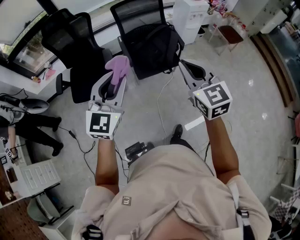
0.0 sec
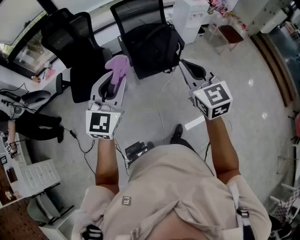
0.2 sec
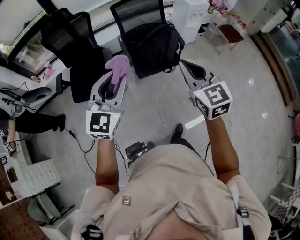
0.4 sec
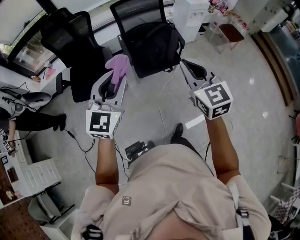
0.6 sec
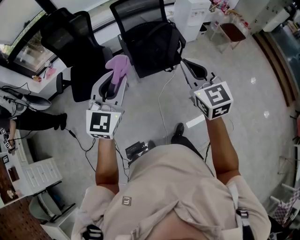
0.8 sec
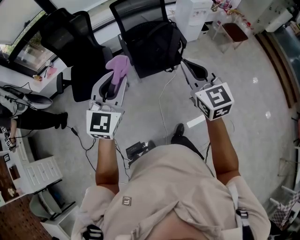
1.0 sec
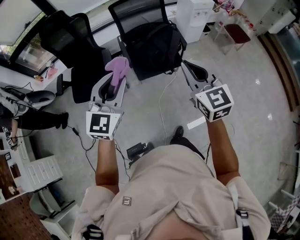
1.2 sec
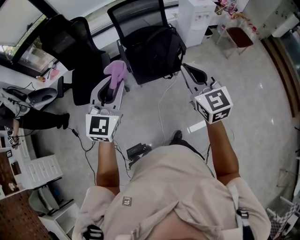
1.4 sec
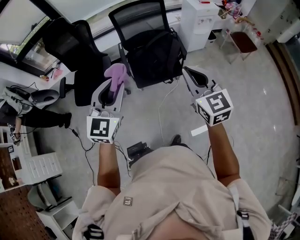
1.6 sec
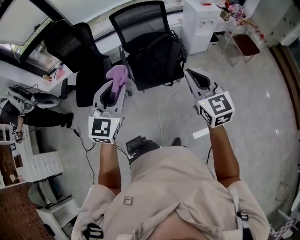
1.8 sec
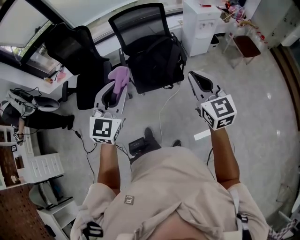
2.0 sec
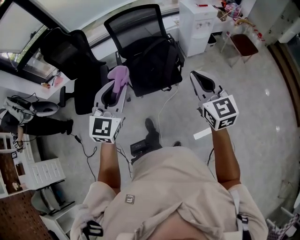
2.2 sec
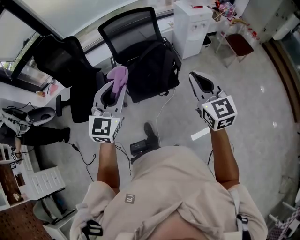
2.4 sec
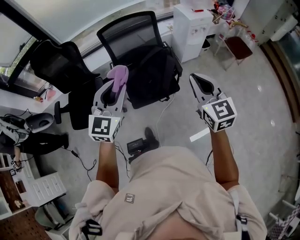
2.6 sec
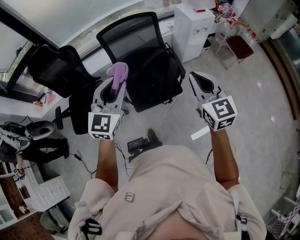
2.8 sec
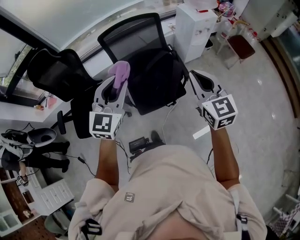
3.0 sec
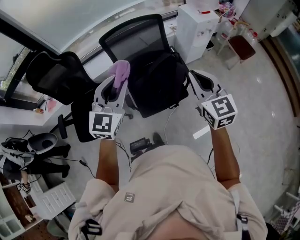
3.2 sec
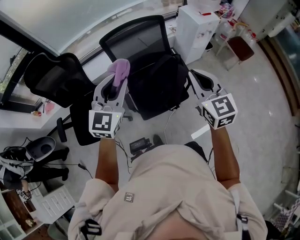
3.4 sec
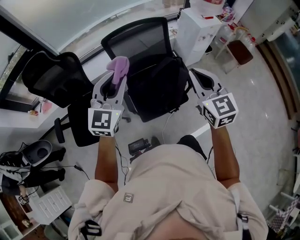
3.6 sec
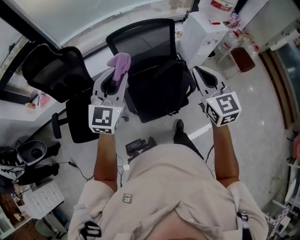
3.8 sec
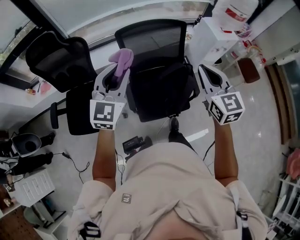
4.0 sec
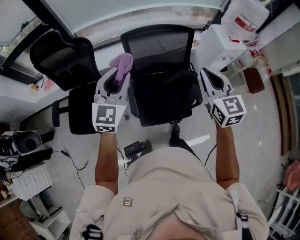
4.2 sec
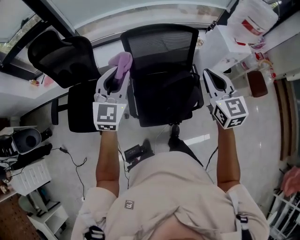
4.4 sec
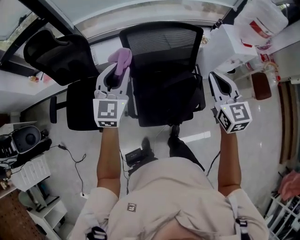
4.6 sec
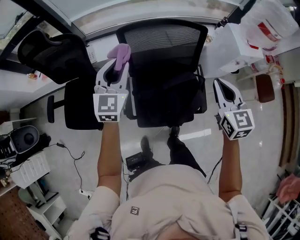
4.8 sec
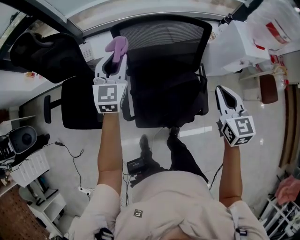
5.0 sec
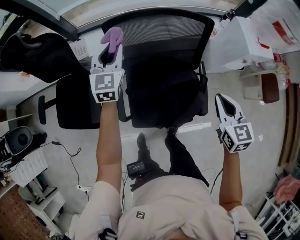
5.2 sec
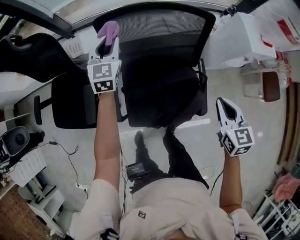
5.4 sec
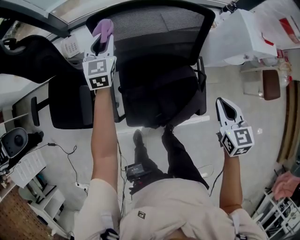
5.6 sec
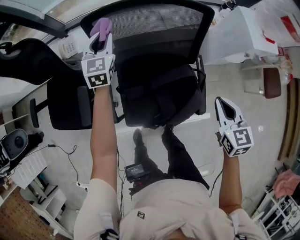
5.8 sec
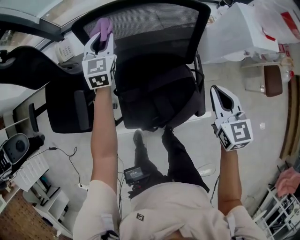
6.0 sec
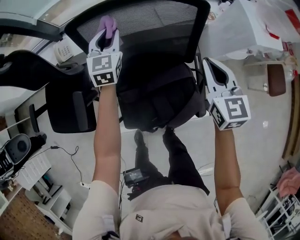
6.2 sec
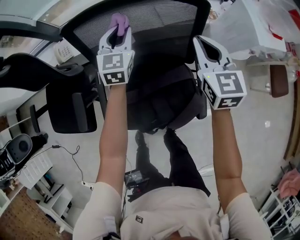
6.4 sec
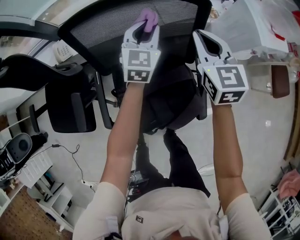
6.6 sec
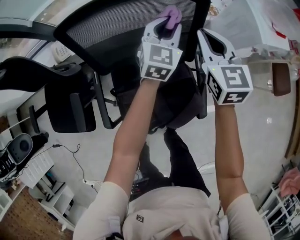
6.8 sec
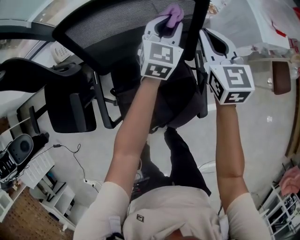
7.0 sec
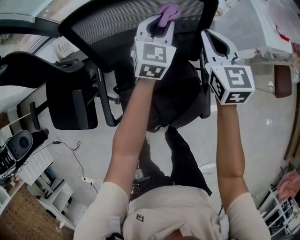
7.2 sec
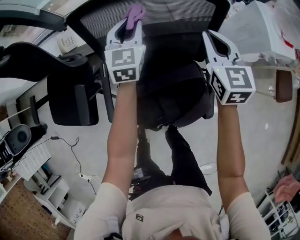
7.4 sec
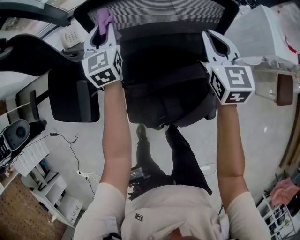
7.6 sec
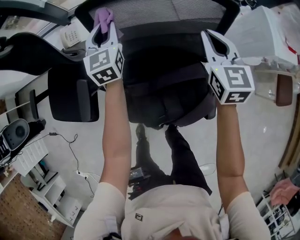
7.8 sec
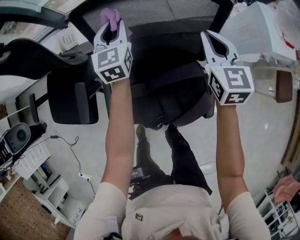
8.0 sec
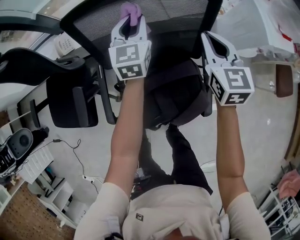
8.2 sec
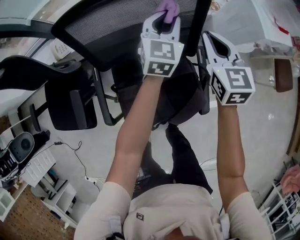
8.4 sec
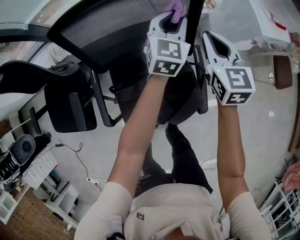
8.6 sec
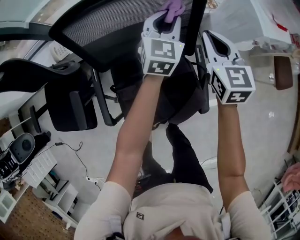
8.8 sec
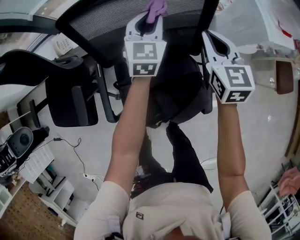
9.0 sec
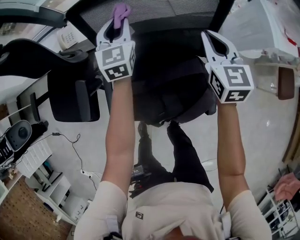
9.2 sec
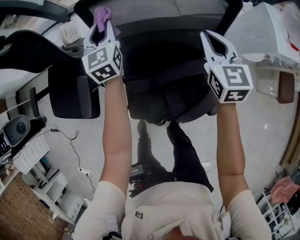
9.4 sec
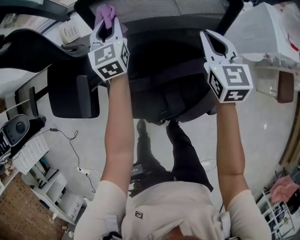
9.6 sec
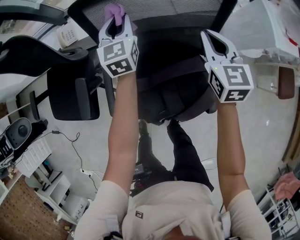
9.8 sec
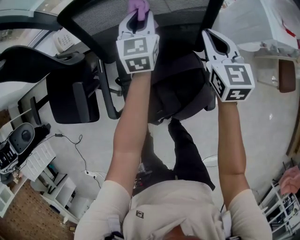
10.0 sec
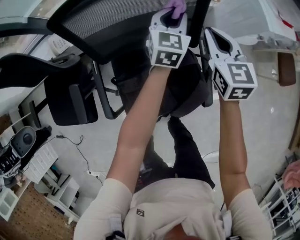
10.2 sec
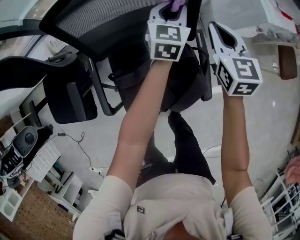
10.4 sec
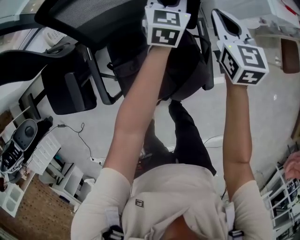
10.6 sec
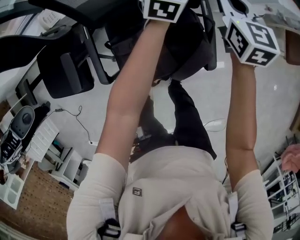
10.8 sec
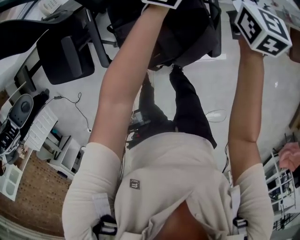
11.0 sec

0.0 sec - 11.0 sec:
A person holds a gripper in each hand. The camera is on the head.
0.0 sec - 1.6 sec: The two grippers go roughly 15 cm to the right and forward.
1.6 sec - 3.2 sec: Both grippers move forward, some 30 cm.
3.2 sec - 4.8 sec: The left gripper heads forward and downward, covering some 30 cm, and swivels some 20 degrees. The right gripper travels forward by approximately 30 cm.
4.8 sec - 6.2 sec: The left gripper goes roughly 30 cm downward, forward and to the right. Meanwhile the right gripper heads downward and forward, covering about 25 cm.
6.2 sec - 7.8 sec: The left gripper travels to the right and back again, some 25 cm each way. The right gripper shifts roughly 10 cm forward and to the left.
7.8 sec - 9.4 sec: The left gripper moves roughly 35 cm to the right and comes back; the right gripper travels to the right and back again, some 10 cm each way.
9.4 sec - 11.0 sec: The right gripper shifts roughly 10 cm to the right; the left gripper moves to the right, about 30 cm, and rotates some 30 degrees.

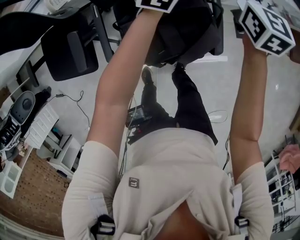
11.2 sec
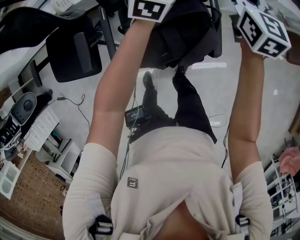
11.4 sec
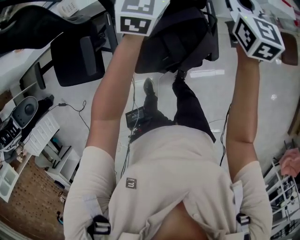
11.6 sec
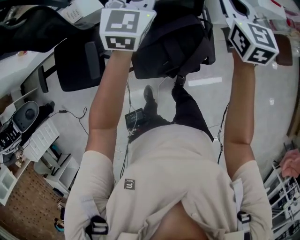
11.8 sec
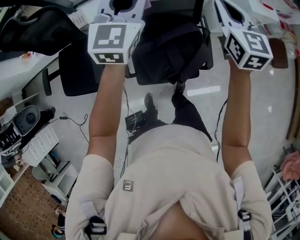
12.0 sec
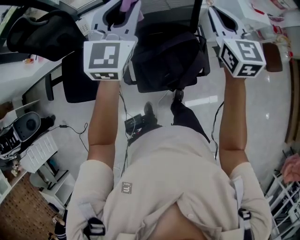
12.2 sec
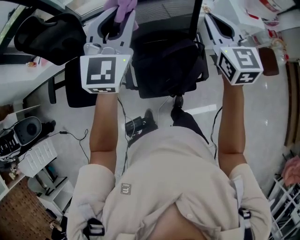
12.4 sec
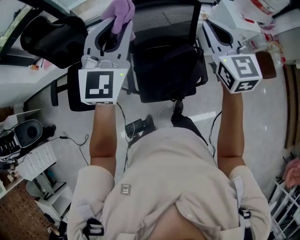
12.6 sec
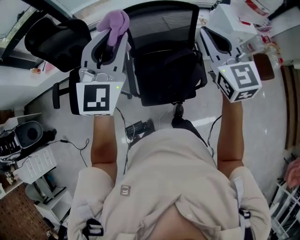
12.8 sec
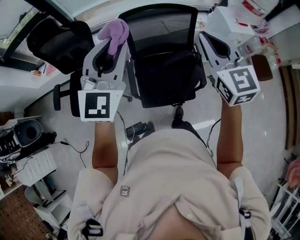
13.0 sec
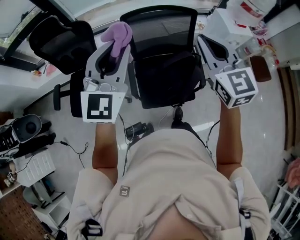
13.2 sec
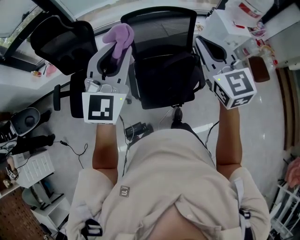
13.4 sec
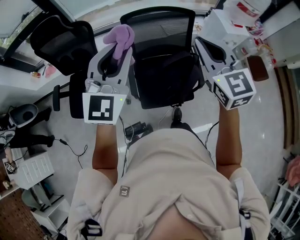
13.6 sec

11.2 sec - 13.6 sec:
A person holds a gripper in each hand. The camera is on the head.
11.2 sec - 12.4 sec: The right gripper moves upward and backward, about 30 cm. The left gripper moves upward, backward and to the left, roughly 50 cm, and swivels approximately 30 degrees.
12.4 sec - 13.6 sec: The left gripper moves backward and to the left, roughly 20 cm. Meanwhile the right gripper goes roughly 20 cm backward, to the left and upward.

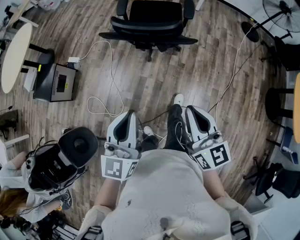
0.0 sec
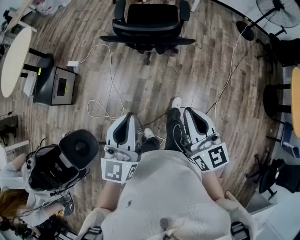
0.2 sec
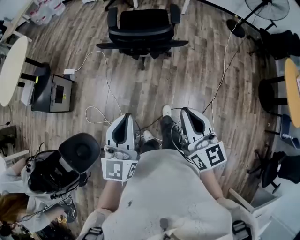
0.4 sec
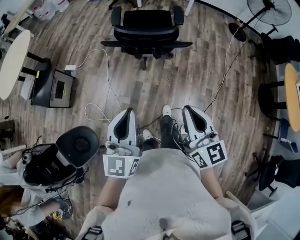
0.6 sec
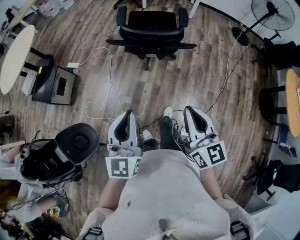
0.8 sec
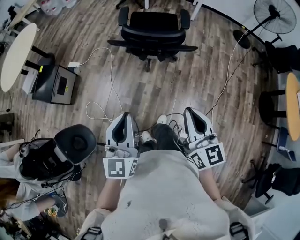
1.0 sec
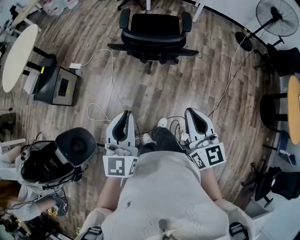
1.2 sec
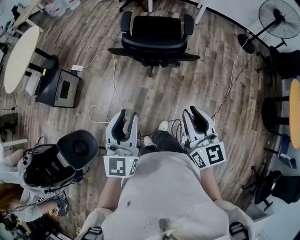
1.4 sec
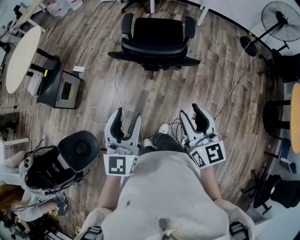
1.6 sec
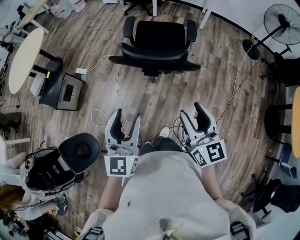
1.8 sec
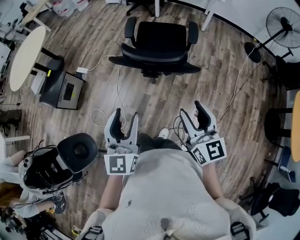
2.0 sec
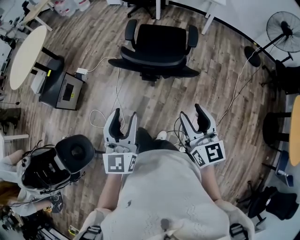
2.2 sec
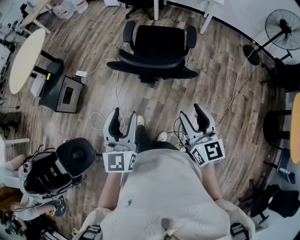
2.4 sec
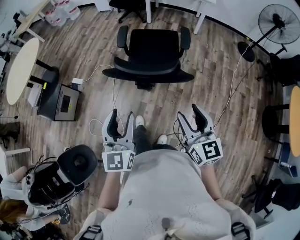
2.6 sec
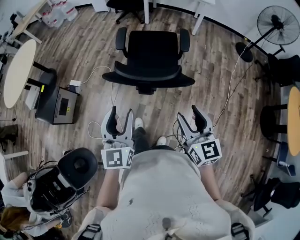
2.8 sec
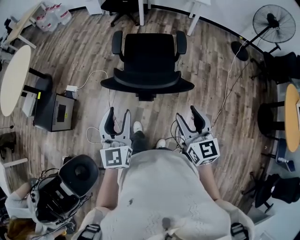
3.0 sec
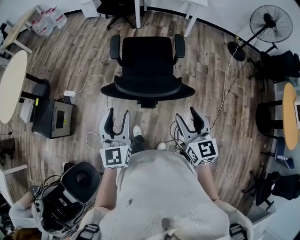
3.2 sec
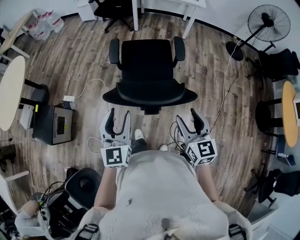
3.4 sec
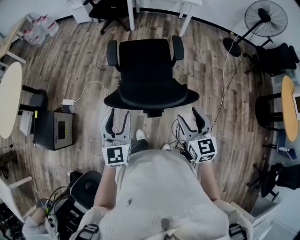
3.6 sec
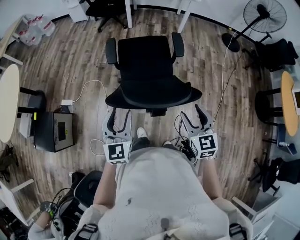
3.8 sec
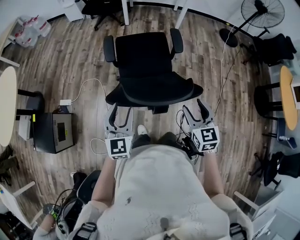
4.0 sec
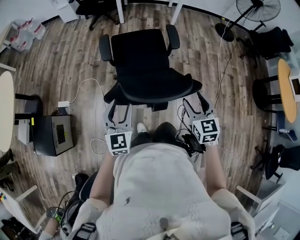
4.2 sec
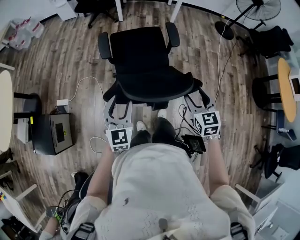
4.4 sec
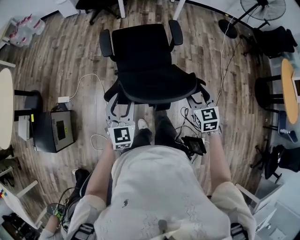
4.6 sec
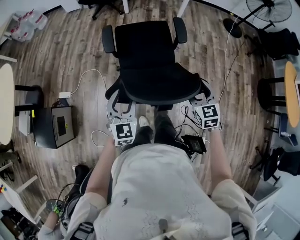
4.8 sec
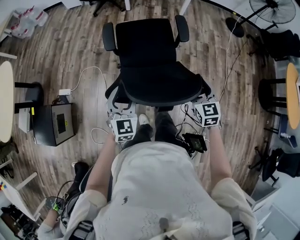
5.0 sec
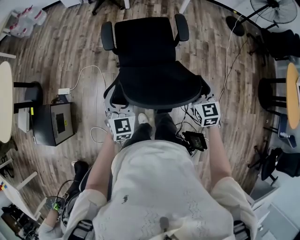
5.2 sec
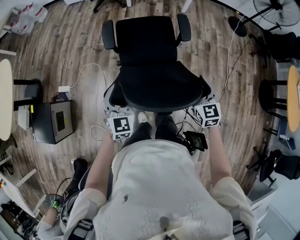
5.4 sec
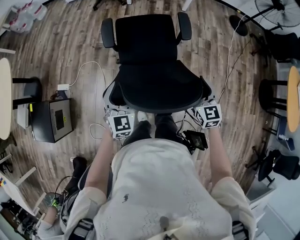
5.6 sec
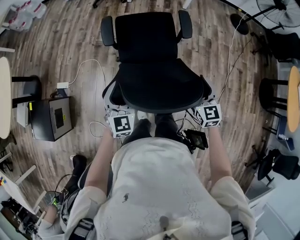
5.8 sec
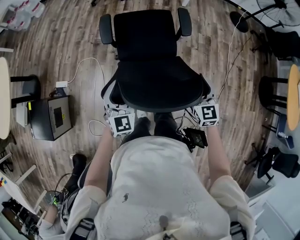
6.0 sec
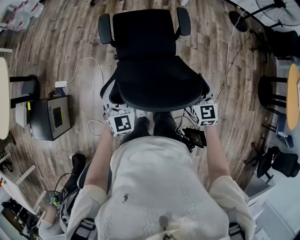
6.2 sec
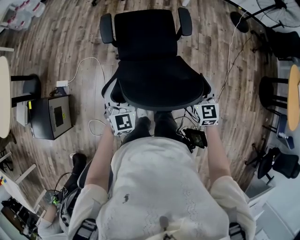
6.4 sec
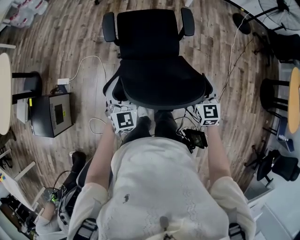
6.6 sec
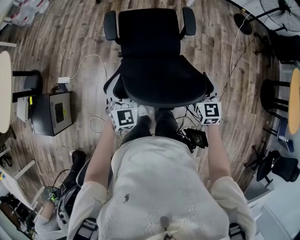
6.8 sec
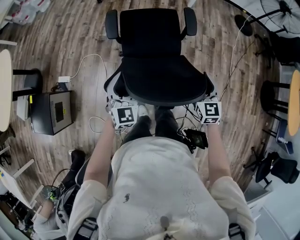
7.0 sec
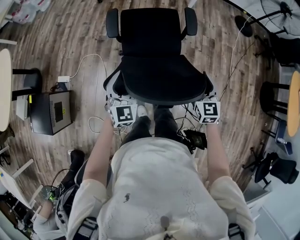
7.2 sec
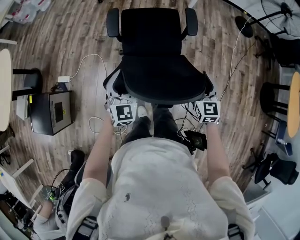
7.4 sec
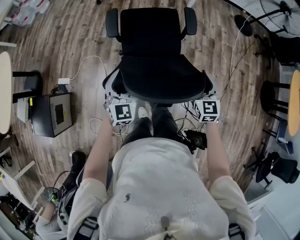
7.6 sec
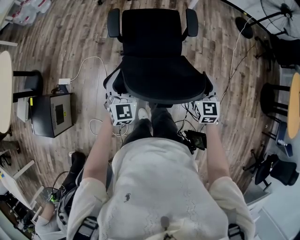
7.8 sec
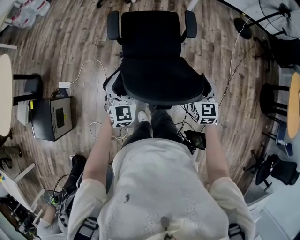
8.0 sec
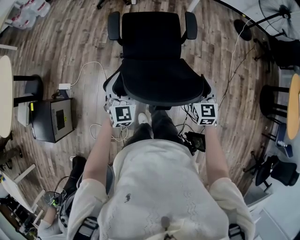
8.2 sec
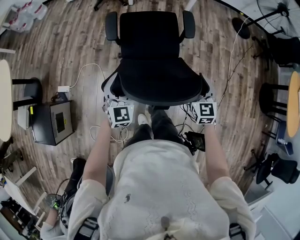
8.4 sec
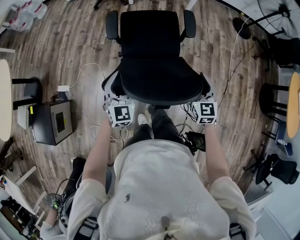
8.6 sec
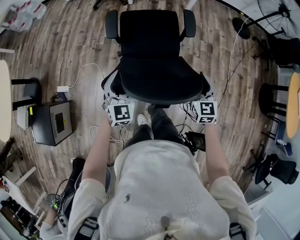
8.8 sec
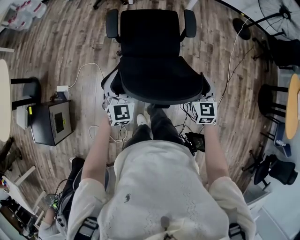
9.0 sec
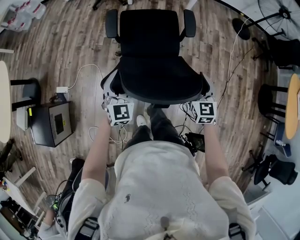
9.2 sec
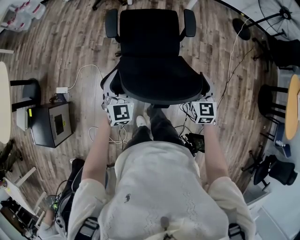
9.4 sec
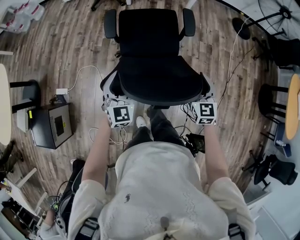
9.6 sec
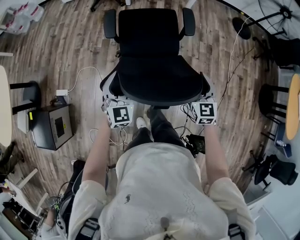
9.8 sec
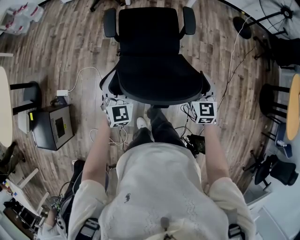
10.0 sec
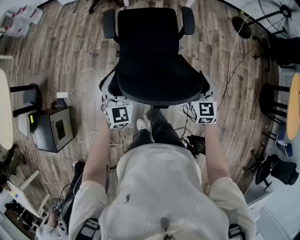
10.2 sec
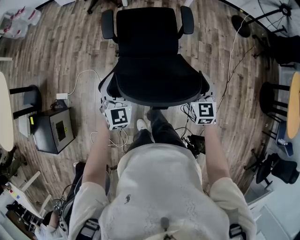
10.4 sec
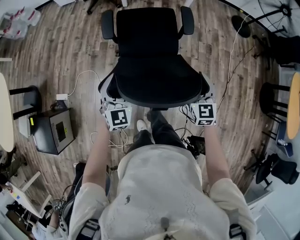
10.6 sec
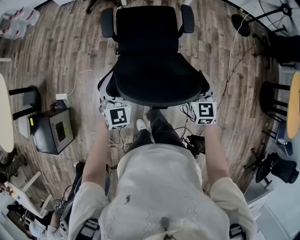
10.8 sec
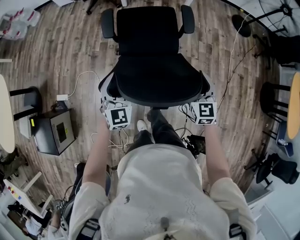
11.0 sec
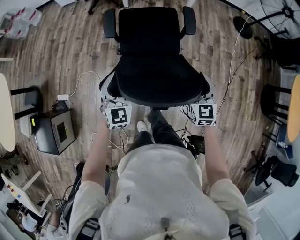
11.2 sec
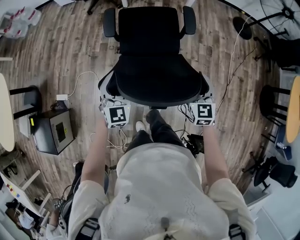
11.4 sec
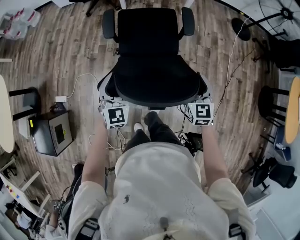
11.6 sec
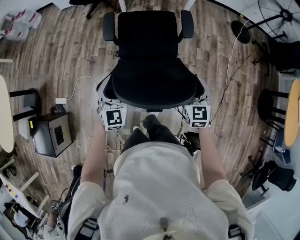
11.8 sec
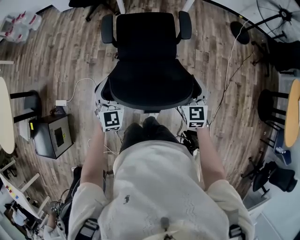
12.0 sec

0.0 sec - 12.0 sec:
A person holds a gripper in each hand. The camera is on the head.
0.0 sec - 1.6 sec: The left gripper reaches approximately 15 cm backward, then returns, and opens up; the right gripper reaches some 15 cm backward, then returns, and opens up.
1.6 sec - 3.0 sec: Both grippers travel together forward, about 20 cm.
3.0 sec - 4.4 sec: The right gripper moves forward and downward, approximately 20 cm, and turns by some 20 degrees. Meanwhile the left gripper goes some 25 cm forward, downward and to the left, and turns by some 20 degrees.
4.4 sec - 6.0 sec: Both grippers travel together forward and downward, roughly 15 cm.
6.0 sec - 7.6 sec: The grippers make only small movements.
7.6 sec - 9.0 sec: Both grippers travel together forward, about 10 cm.
9.0 sec - 10.4 sec: Both grippers travel together forward, some 10 cm.
10.4 sec - 12.0 sec: The grippers both shift forward and to the right by approximately 10 cm.
